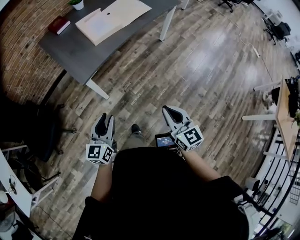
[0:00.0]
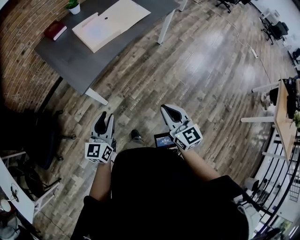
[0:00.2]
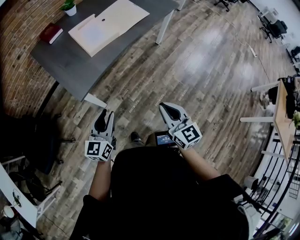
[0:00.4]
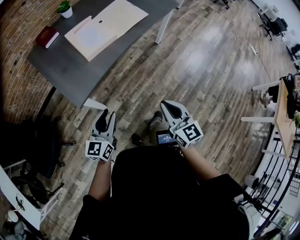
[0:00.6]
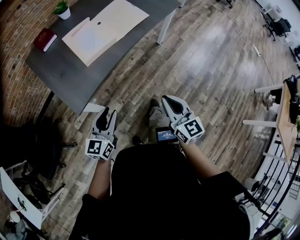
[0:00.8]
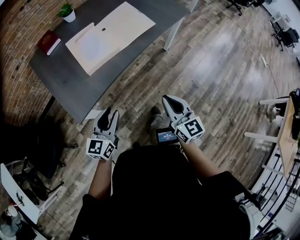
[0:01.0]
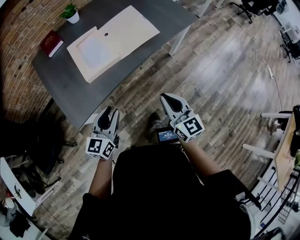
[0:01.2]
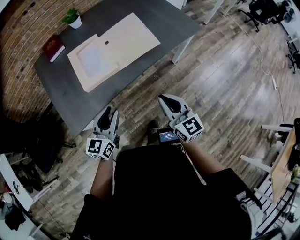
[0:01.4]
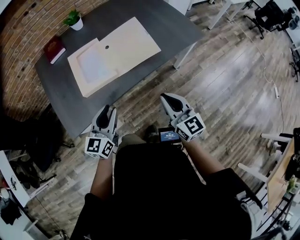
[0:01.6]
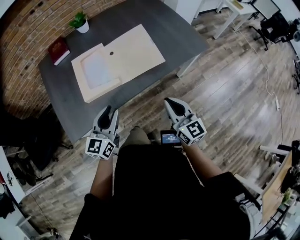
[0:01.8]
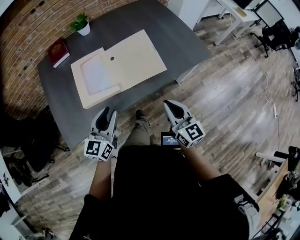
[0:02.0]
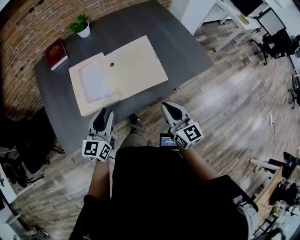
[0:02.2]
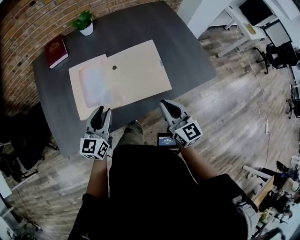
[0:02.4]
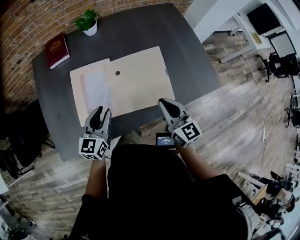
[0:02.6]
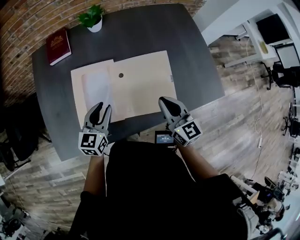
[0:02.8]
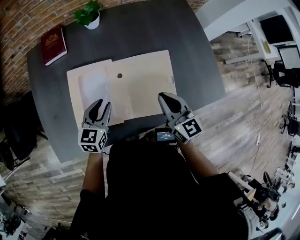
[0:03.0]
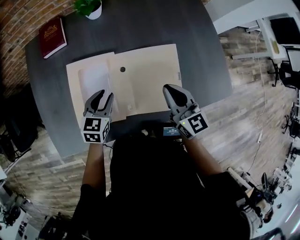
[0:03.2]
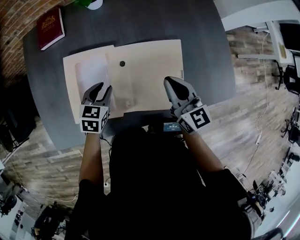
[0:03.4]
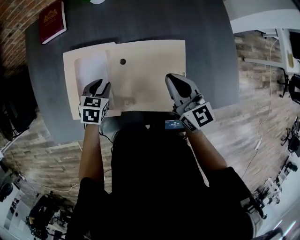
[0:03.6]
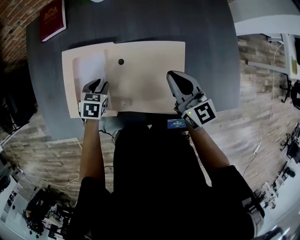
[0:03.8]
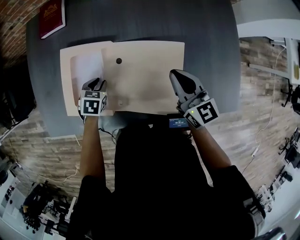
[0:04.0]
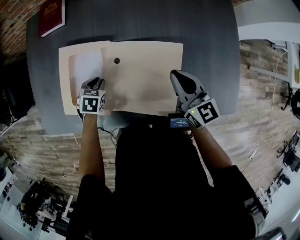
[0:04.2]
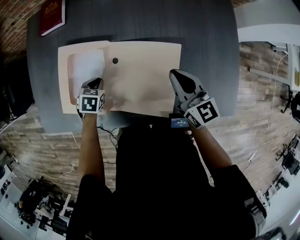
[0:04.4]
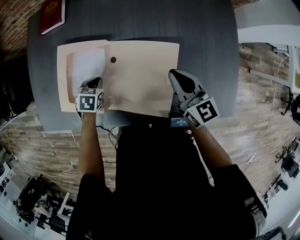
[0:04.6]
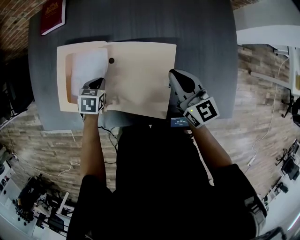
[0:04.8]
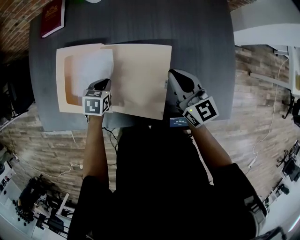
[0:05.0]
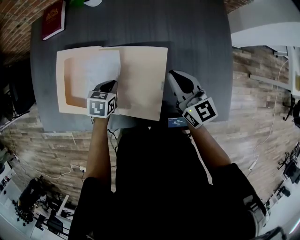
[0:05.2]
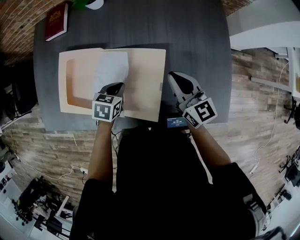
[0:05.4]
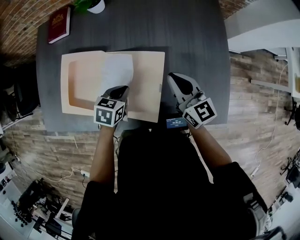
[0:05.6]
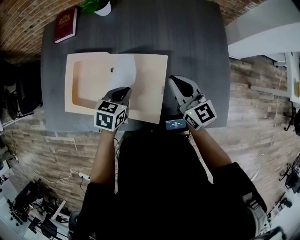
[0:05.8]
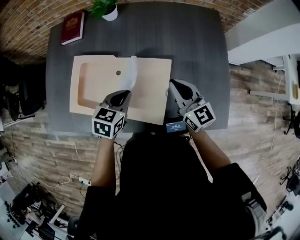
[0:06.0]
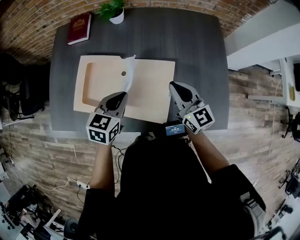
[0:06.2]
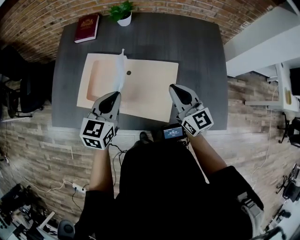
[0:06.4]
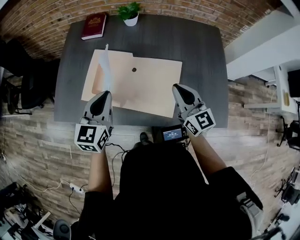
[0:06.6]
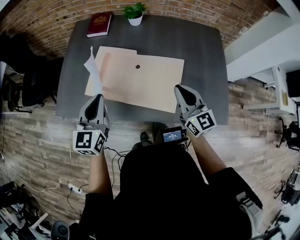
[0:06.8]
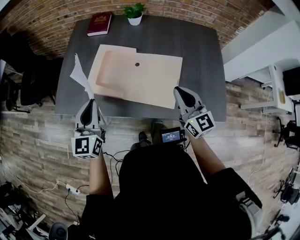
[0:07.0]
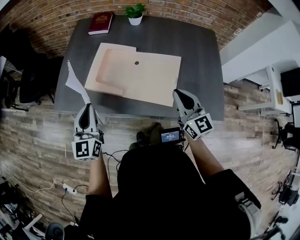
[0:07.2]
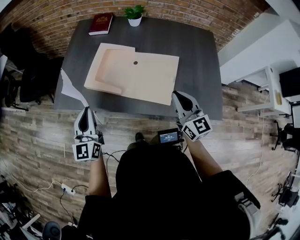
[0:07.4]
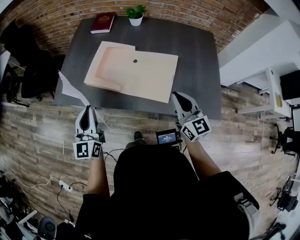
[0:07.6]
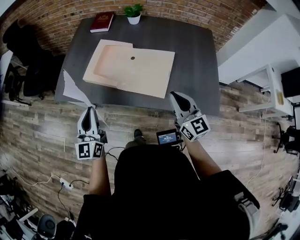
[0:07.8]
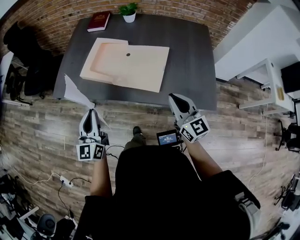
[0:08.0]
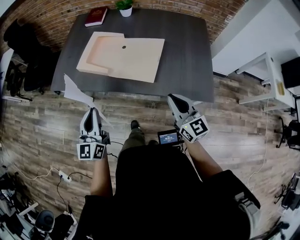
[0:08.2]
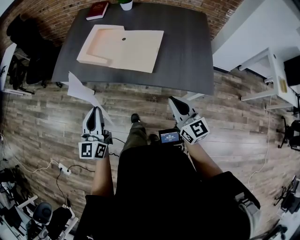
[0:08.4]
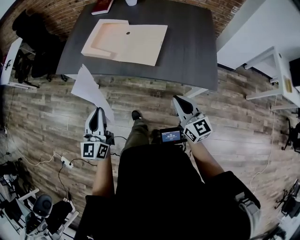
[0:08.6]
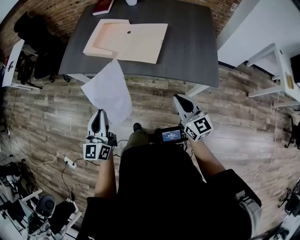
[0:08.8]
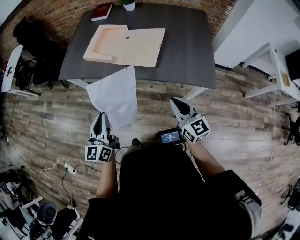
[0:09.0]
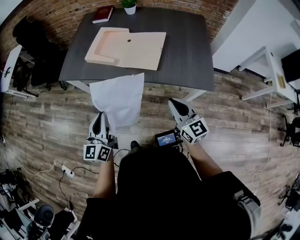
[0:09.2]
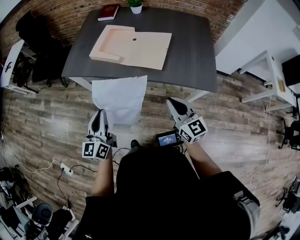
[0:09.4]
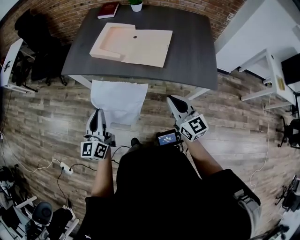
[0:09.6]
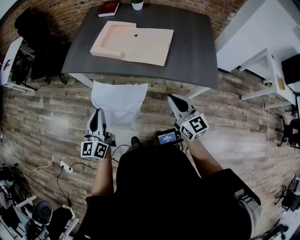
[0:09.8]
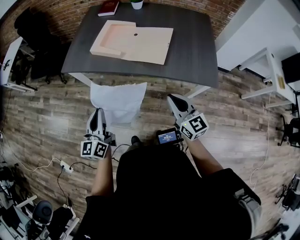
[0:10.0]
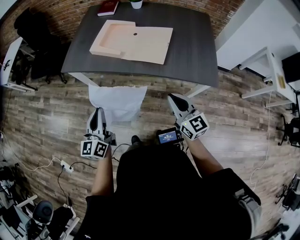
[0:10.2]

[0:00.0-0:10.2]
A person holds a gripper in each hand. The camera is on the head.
0:00.0 to 0:01.4: The two grippers travel together, forward, approximately 40 cm.
0:01.4 to 0:03.0: The grippers both shift forward by some 40 cm. The left gripper swivels about 20 degrees.
0:03.0 to 0:04.4: The left gripper goes about 15 cm downward, tilts its fingers some 40 degrees downward, and closes up; the right gripper moves forward, to the right and downward, roughly 15 cm.
0:04.4 to 0:05.8: The left gripper shifts about 20 cm to the right and upward, and turns by approximately 20 degrees, while the right gripper heads to the right, covering some 5 cm.
0:05.8 to 0:07.2: The right gripper shifts about 25 cm backward, to the left and upward; the left gripper moves to the left, backward and upward, some 40 cm, and tilts its fingers approximately 50 degrees upward.
0:07.2 to 0:08.8: Both grippers move backward, some 30 cm.
0:08.8 to 0:10.2: The grippers both shift to the left by approximately 10 cm.

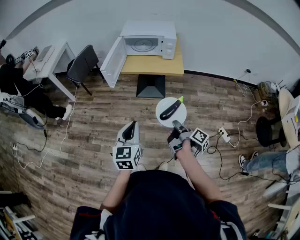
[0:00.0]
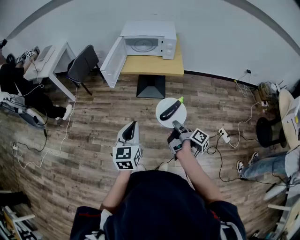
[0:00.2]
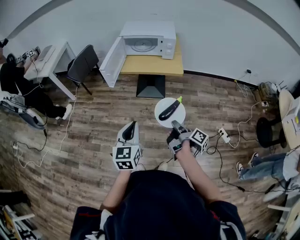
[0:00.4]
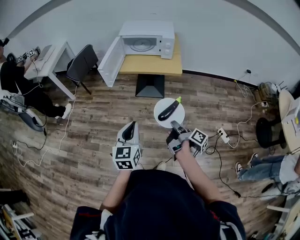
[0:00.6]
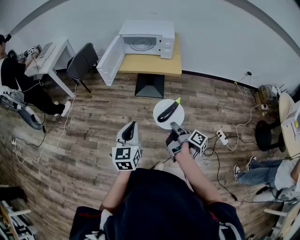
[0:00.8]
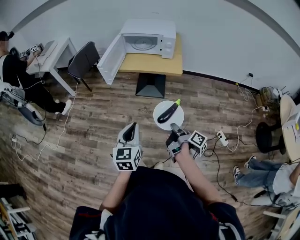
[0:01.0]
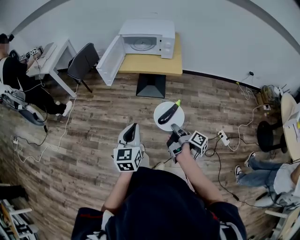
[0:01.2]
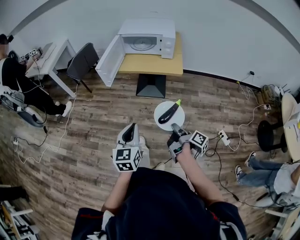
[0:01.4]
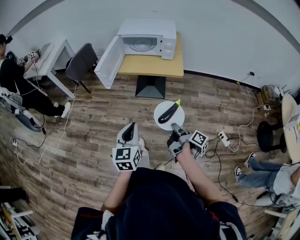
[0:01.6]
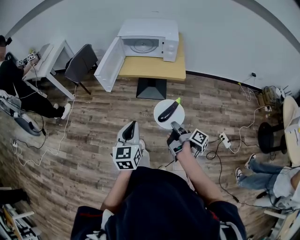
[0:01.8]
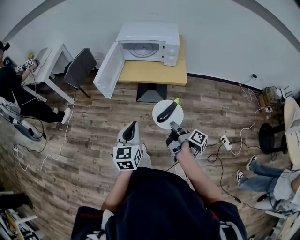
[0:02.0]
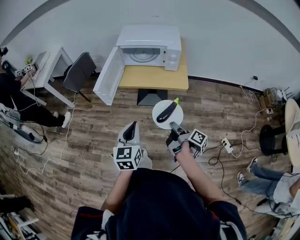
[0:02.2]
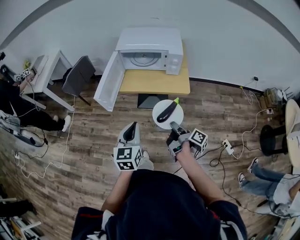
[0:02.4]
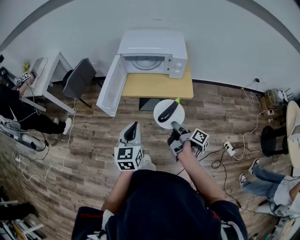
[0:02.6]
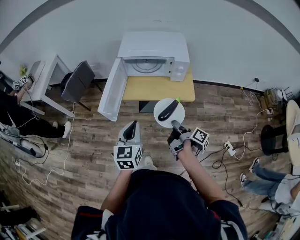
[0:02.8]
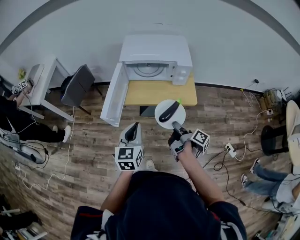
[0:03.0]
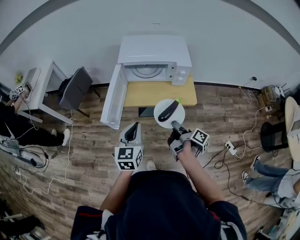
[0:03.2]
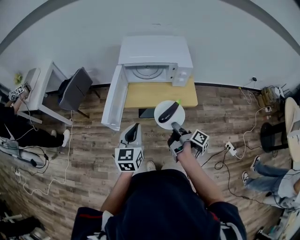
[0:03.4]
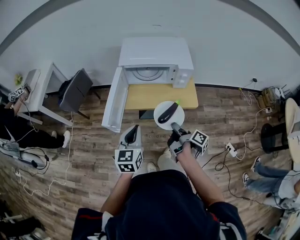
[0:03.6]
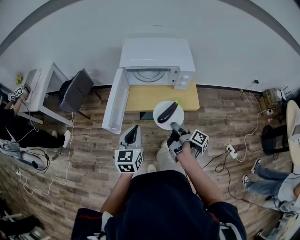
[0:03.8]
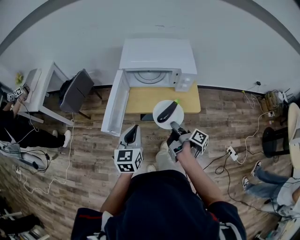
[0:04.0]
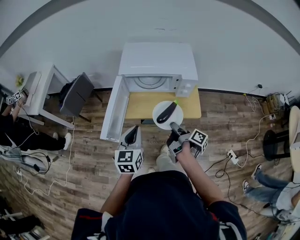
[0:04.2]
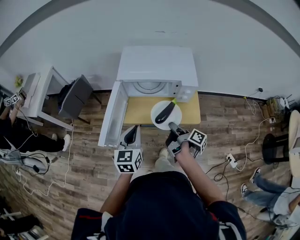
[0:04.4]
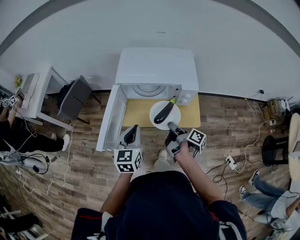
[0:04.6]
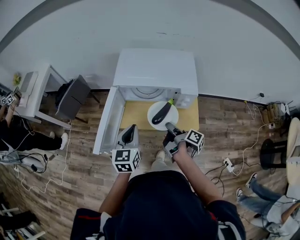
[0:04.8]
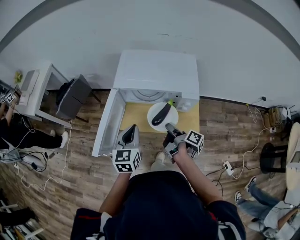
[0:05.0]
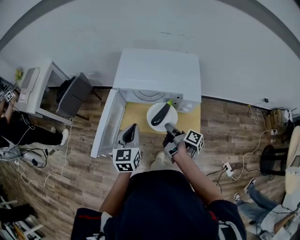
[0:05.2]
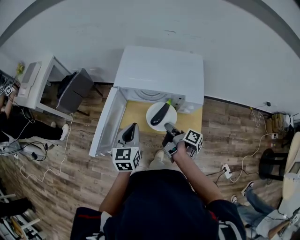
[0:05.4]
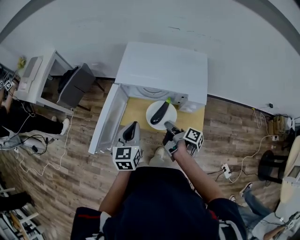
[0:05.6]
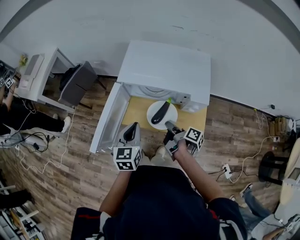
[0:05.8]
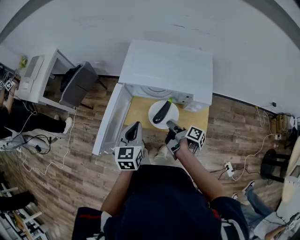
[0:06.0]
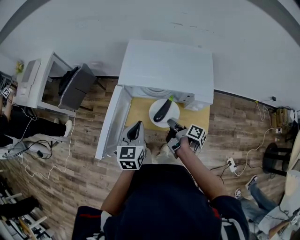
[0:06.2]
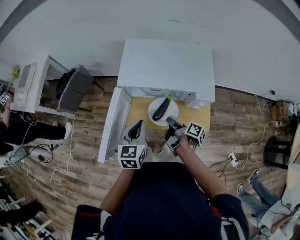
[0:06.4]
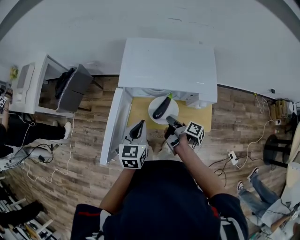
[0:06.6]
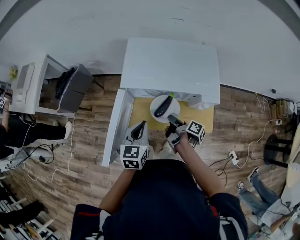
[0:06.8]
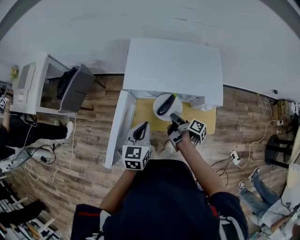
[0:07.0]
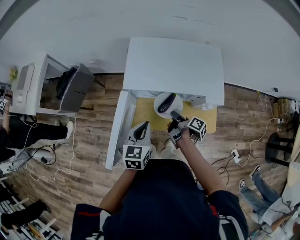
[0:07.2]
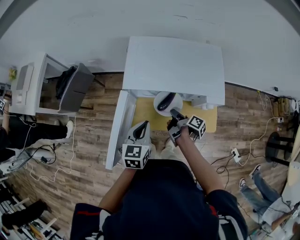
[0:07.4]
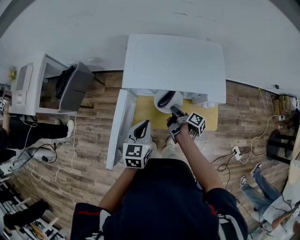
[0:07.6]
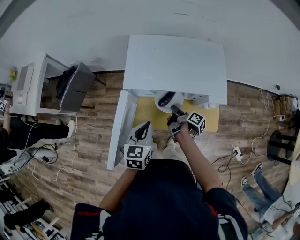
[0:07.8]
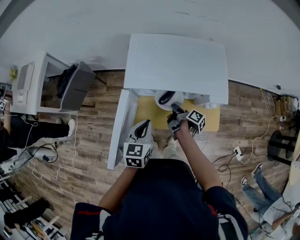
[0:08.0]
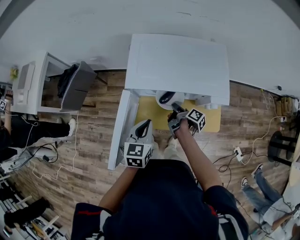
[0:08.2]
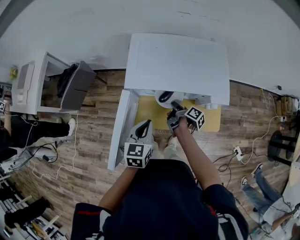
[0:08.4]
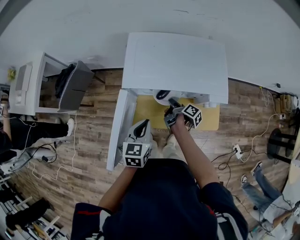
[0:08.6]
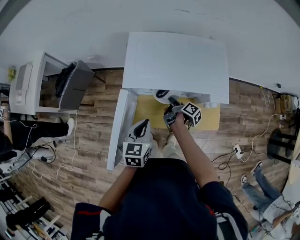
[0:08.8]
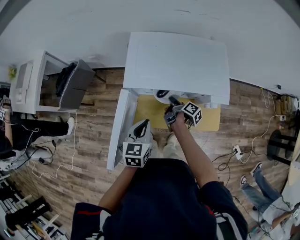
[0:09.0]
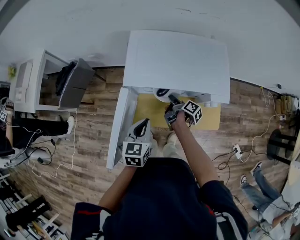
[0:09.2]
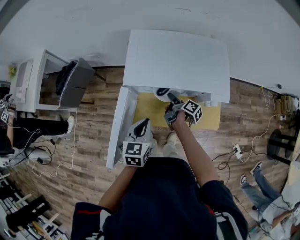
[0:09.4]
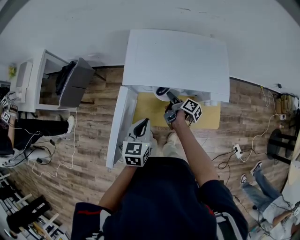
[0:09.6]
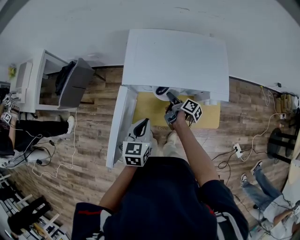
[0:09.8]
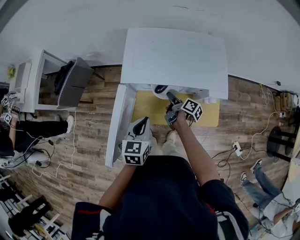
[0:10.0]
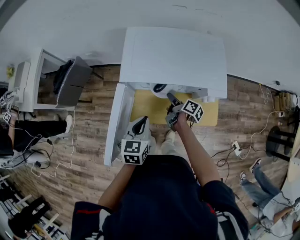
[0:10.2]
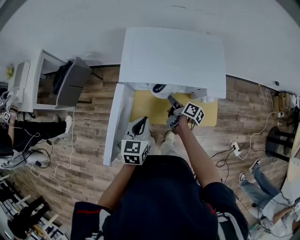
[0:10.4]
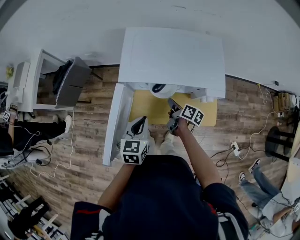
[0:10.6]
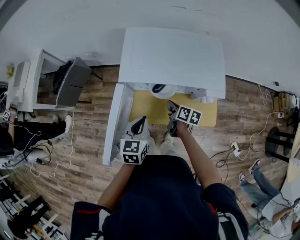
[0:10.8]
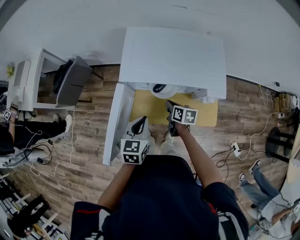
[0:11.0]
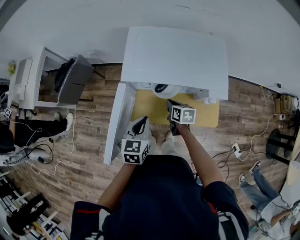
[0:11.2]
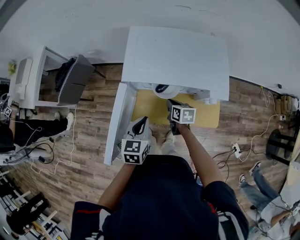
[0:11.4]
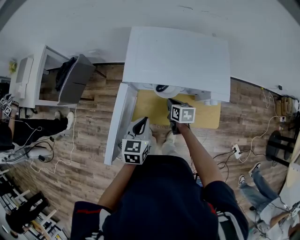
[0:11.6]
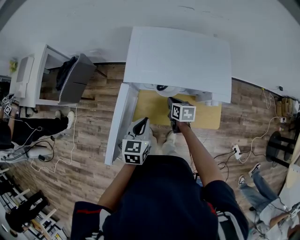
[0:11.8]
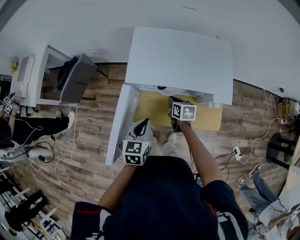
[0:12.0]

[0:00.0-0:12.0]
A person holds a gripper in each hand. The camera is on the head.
0:00.0 to 0:01.6: The left gripper shifts by roughly 5 cm.
0:01.6 to 0:03.0: The left gripper ends up about 30 cm from where it was.
0:03.0 to 0:04.4: The left gripper ends up about 15 cm from where it was.
0:04.4 to 0:06.0: The left gripper ends up approximately 10 cm from where it was.
0:06.0 to 0:07.6: The left gripper changes place by some 5 cm.

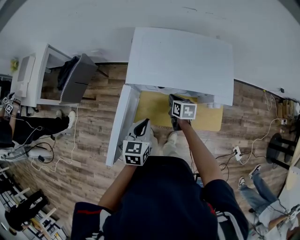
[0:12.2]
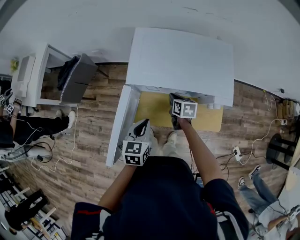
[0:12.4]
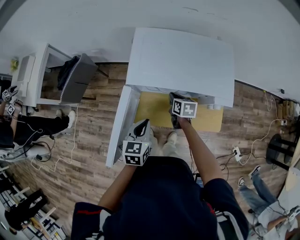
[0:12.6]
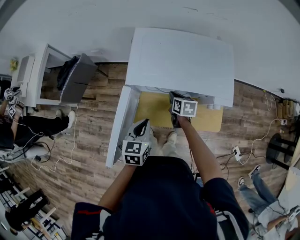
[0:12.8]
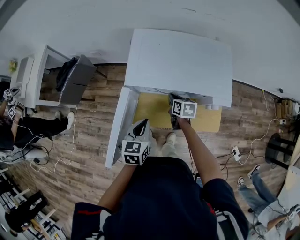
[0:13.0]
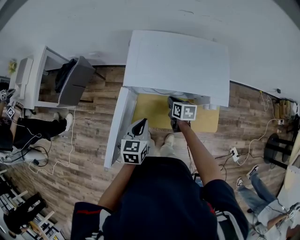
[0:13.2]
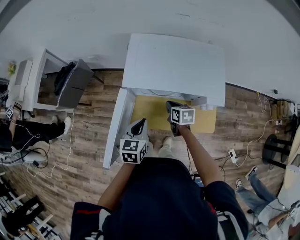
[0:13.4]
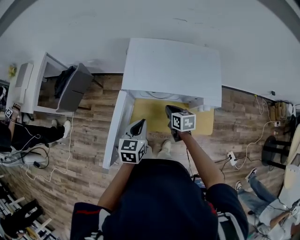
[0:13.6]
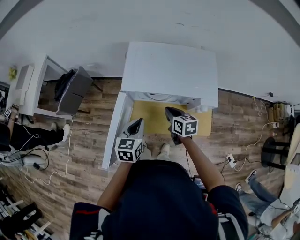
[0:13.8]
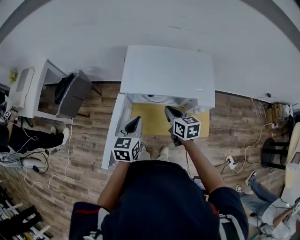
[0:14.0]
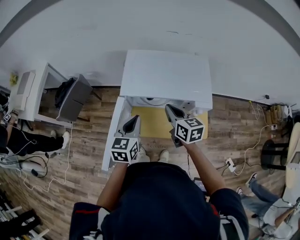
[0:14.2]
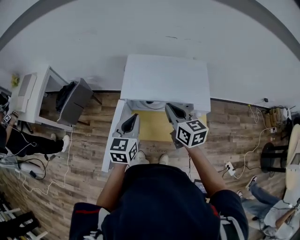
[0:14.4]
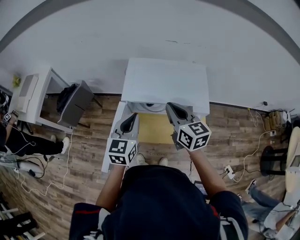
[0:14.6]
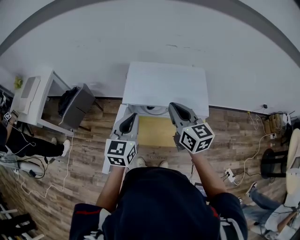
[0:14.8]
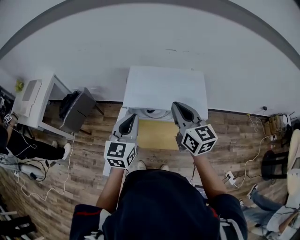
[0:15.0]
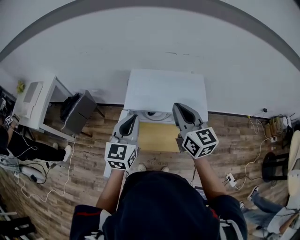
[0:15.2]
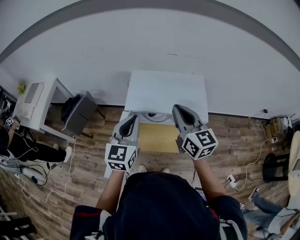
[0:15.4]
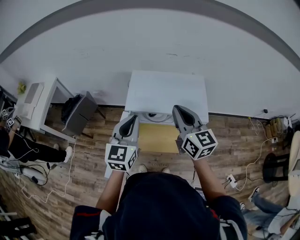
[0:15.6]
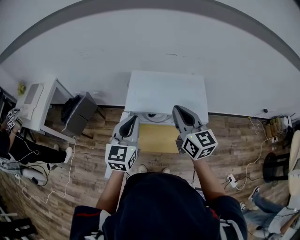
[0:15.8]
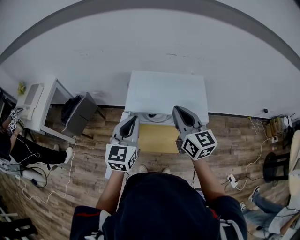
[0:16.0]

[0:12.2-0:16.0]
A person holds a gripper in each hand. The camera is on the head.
0:13.4 to 0:14.8: The left gripper is displaced upward by about 20 cm, and rotates about 20 degrees.
